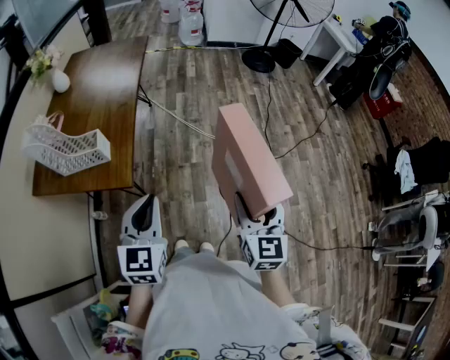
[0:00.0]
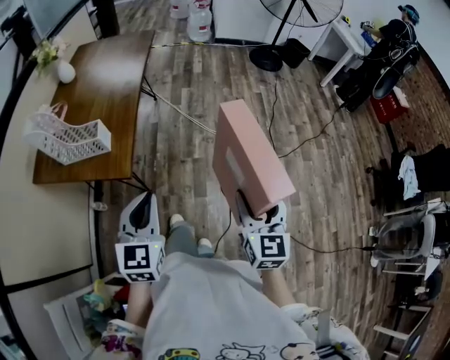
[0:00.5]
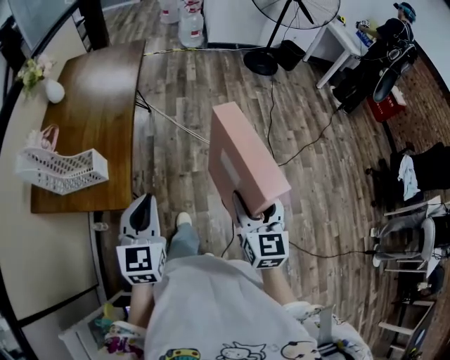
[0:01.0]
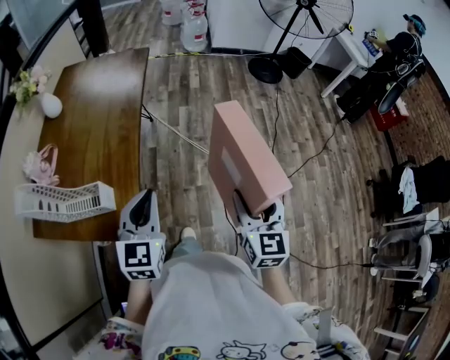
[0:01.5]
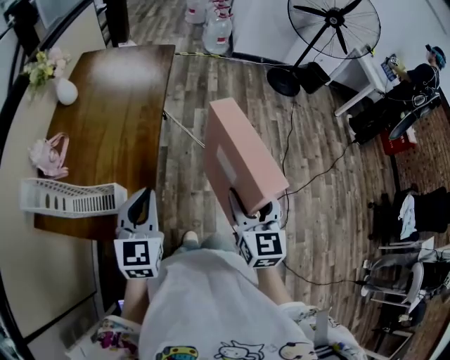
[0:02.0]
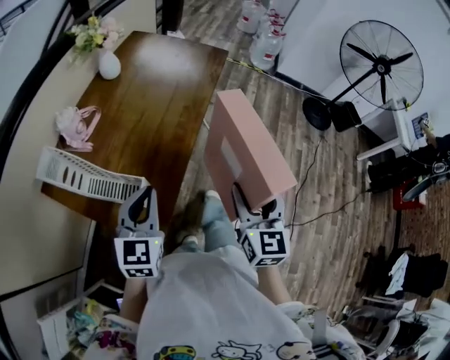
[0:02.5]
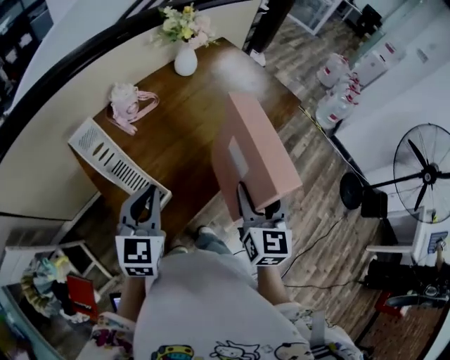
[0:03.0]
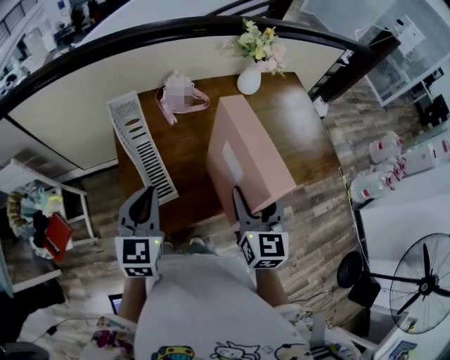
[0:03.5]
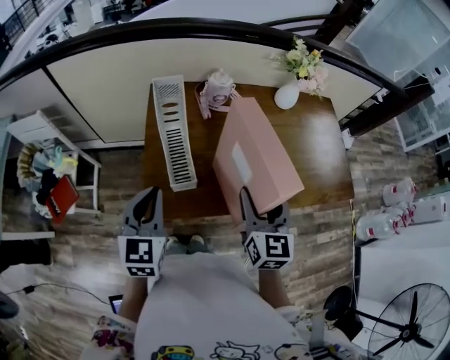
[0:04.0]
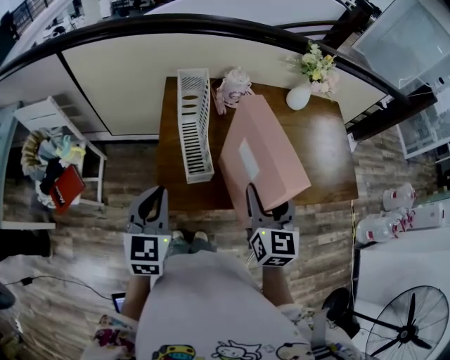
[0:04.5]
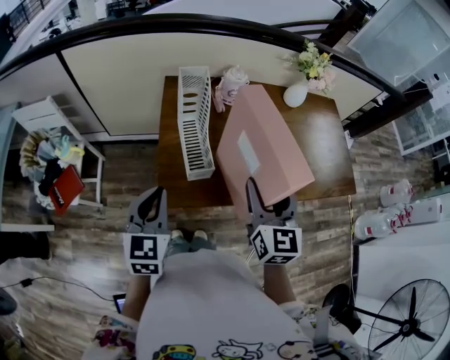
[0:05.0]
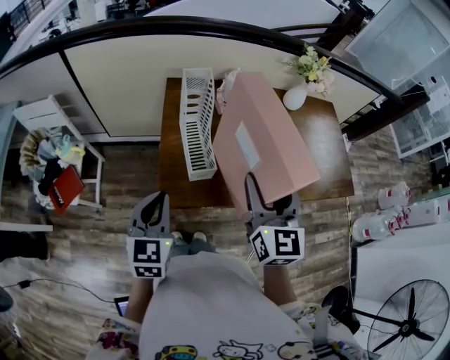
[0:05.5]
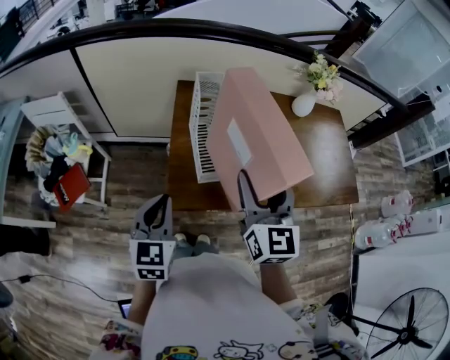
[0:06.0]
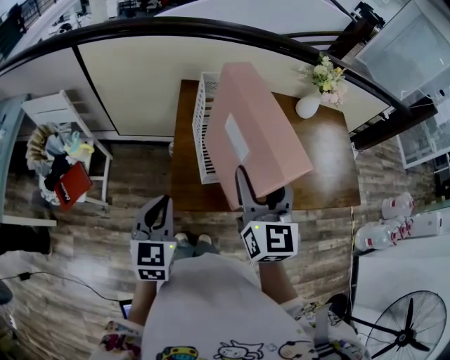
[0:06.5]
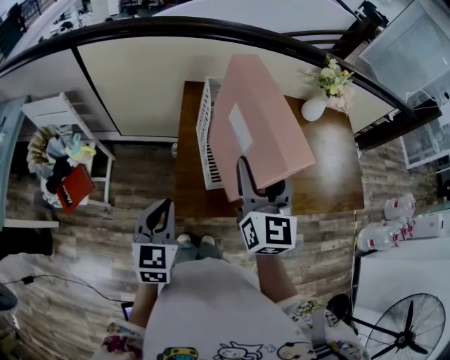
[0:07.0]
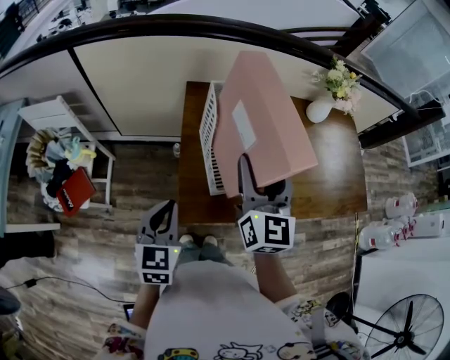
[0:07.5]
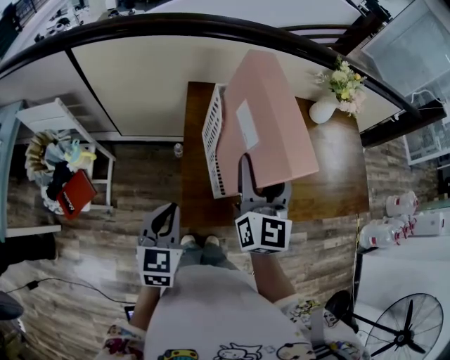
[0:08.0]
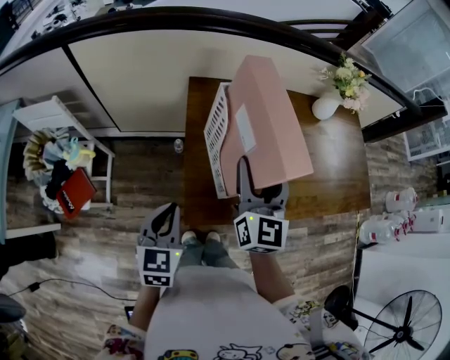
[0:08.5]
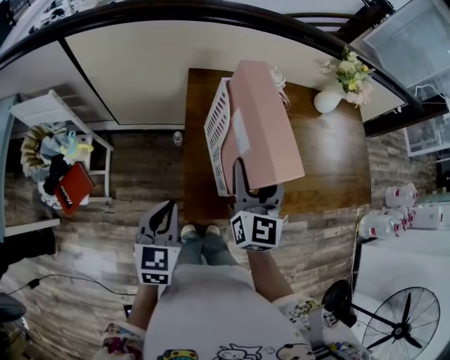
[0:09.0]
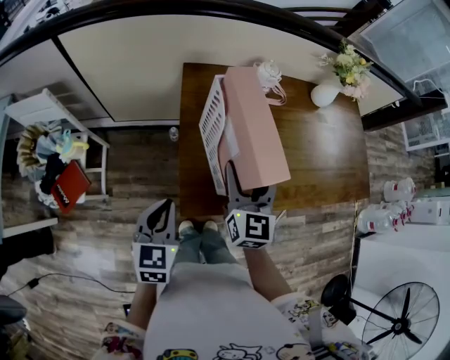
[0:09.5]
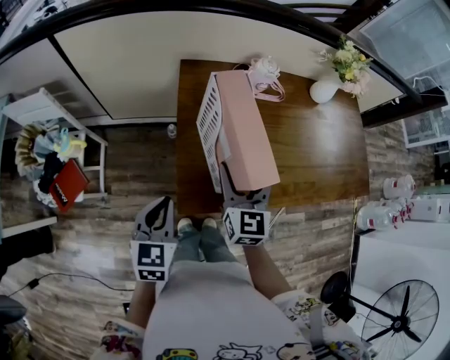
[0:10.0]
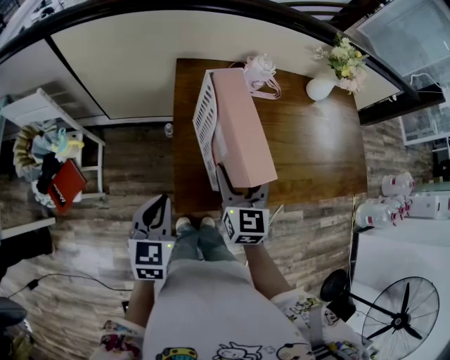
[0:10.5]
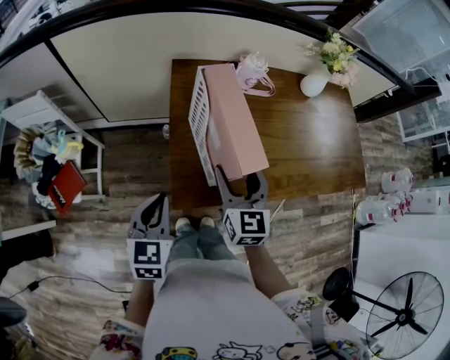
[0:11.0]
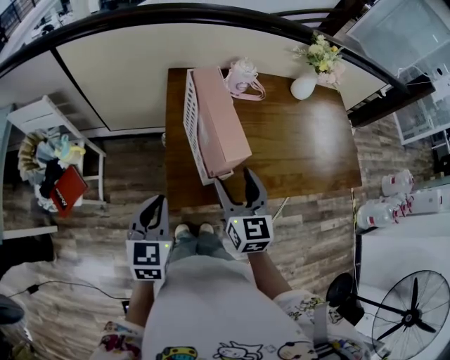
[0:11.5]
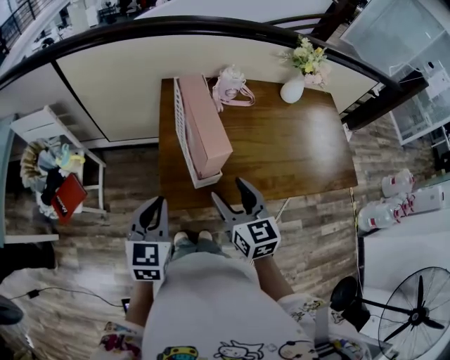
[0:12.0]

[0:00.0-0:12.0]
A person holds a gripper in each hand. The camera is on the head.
0.0 to 2.0 s: The grippers both shift forward and to the left by some 30 cm.
2.0 to 4.0 s: The right gripper changes place by some 35 cm, and turns by about 80 degrees; the left gripper moves about 15 cm, and rotates about 80 degrees.
4.0 to 6.0 s: The right gripper is displaced to the left and upward by roughly 15 cm, while the left gripper shifts approximately 10 cm to the left and backward.
6.0 to 8.0 s: The right gripper travels forward and to the left by about 10 cm. Meanwhile the left gripper travels forward by about 5 cm.
8.0 to 10.0 s: The right gripper is displaced downward by roughly 15 cm.
10.0 to 12.0 s: The left gripper travels upward and to the right by some 10 cm, while the right gripper is displaced backward and to the right by approximately 10 cm.

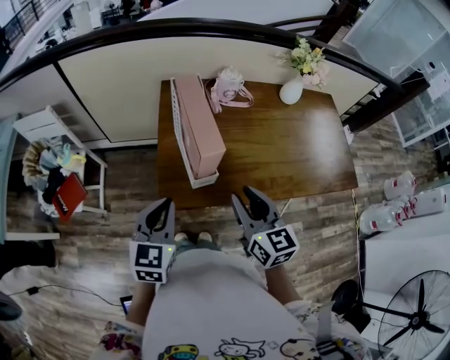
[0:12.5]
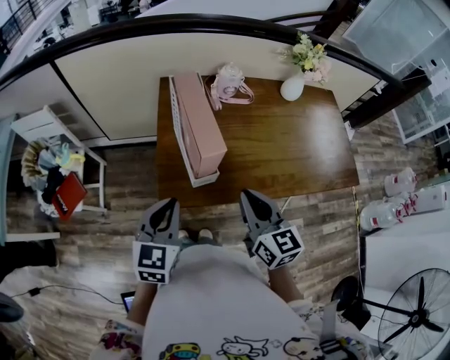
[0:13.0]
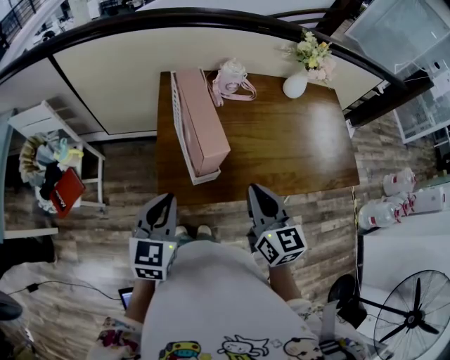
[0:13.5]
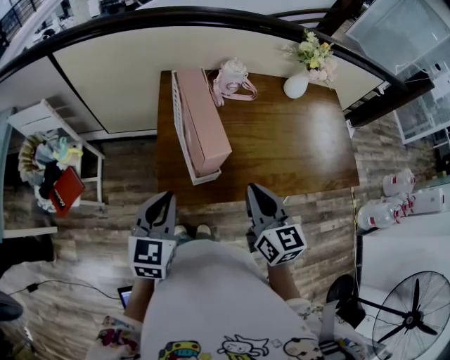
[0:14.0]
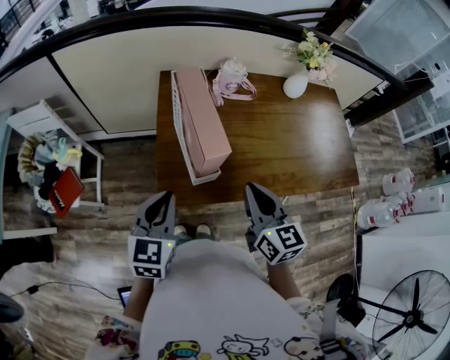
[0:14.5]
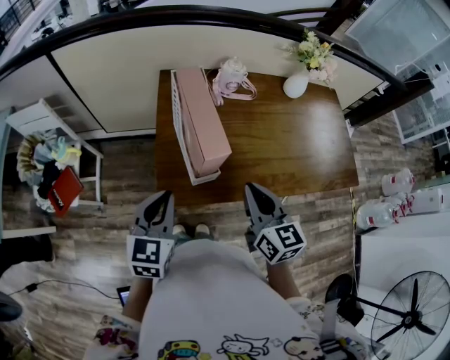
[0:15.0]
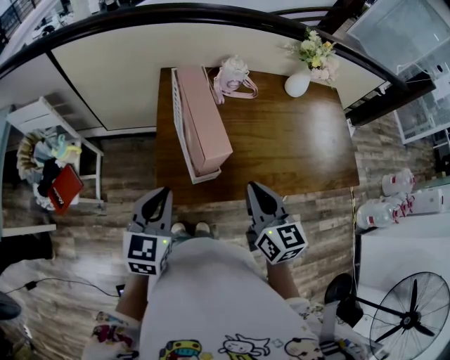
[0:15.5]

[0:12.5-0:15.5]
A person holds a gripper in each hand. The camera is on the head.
12.5 to 14.0 s: The right gripper closes up.
14.0 to 15.5 s: Neither gripper changes place.

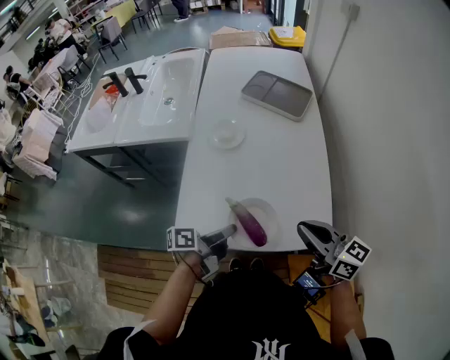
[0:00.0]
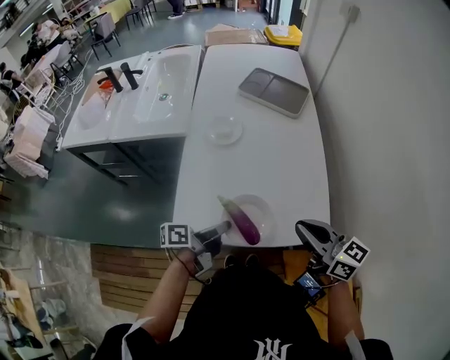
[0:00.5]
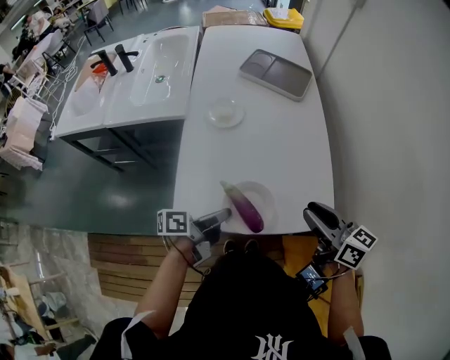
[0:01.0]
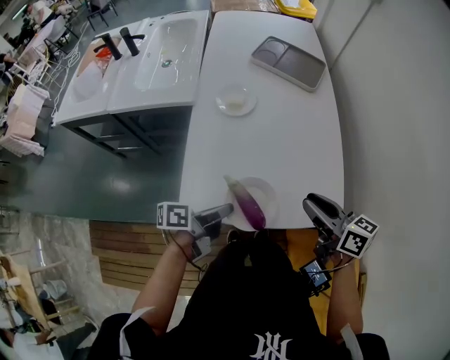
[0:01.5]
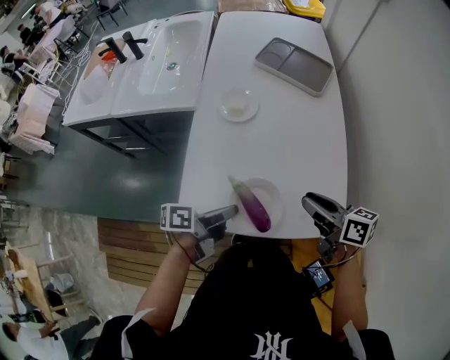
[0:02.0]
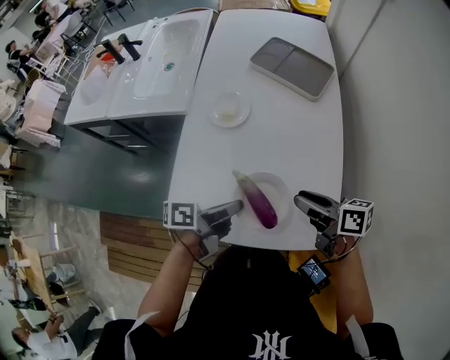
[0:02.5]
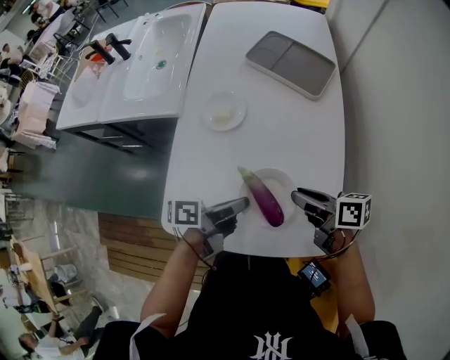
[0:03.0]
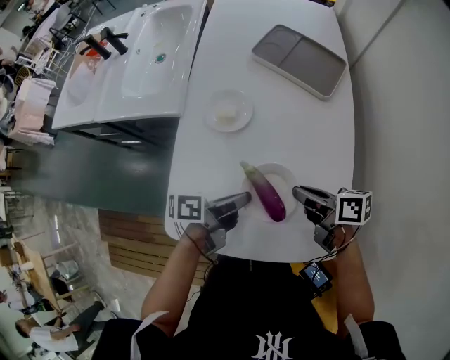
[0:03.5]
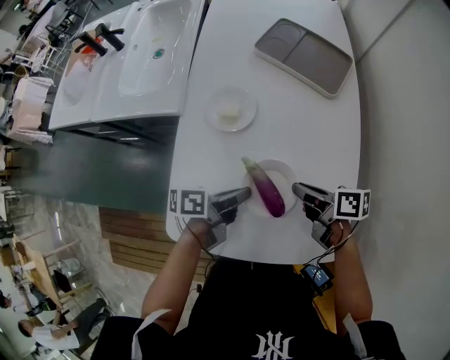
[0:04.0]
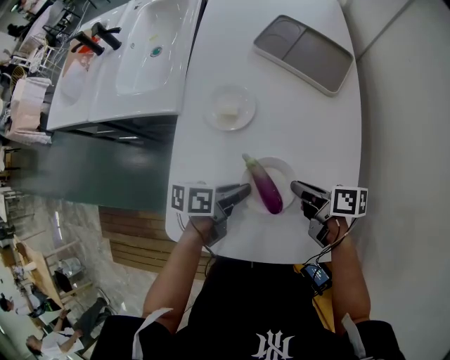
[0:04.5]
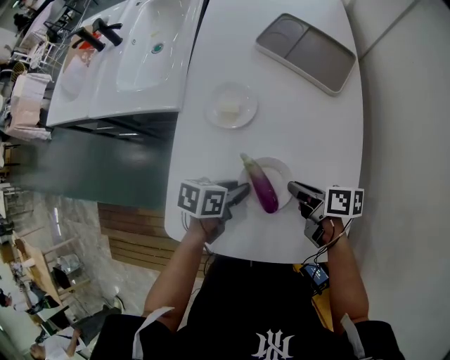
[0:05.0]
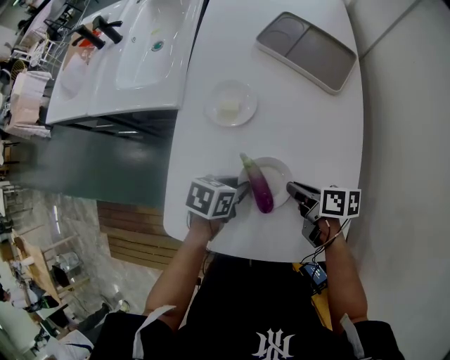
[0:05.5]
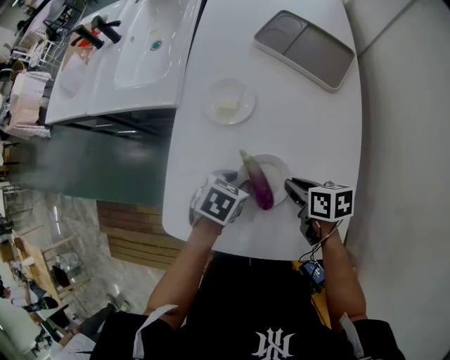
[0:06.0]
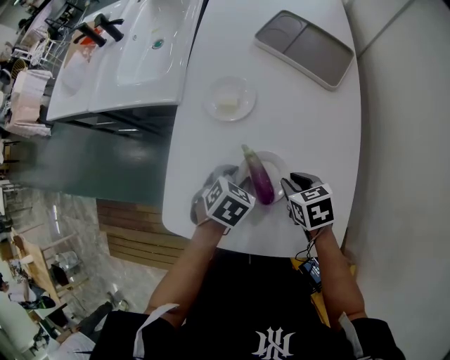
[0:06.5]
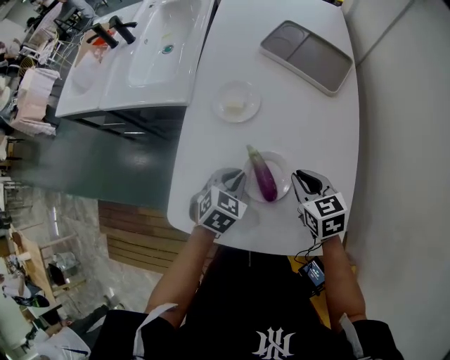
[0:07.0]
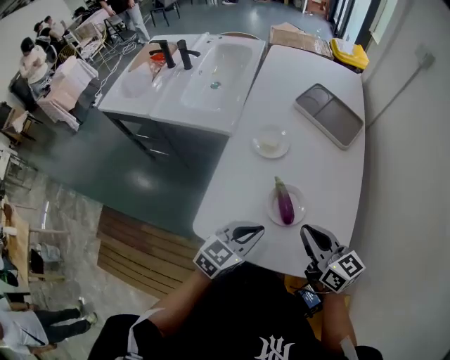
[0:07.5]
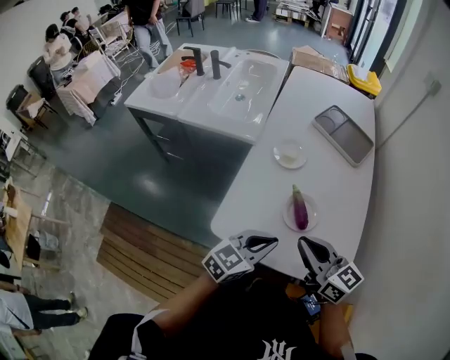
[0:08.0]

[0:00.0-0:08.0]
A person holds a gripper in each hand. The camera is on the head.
0.0 to 2.0 s: The right gripper is displaced downward and forward by about 10 cm, and changes its angle by about 30 degrees.
2.0 to 4.0 s: The left gripper goes approximately 15 cm forward and to the right, while the right gripper is displaced forward and downward by some 15 cm, and swivels about 20 degrees.
4.0 to 6.0 s: The left gripper angles its fingers downward, by roughly 40 degrees, and opens up. Meanwhile the right gripper turns by roughly 20 degrees.
6.0 to 8.0 s: The right gripper heads upward, backward and to the left, covering about 30 cm, and tips its fingers upward by some 40 degrees. Meanwhile the left gripper travels upward and backward by about 25 cm, points its fingers approximately 40 degrees further upward, and closes.

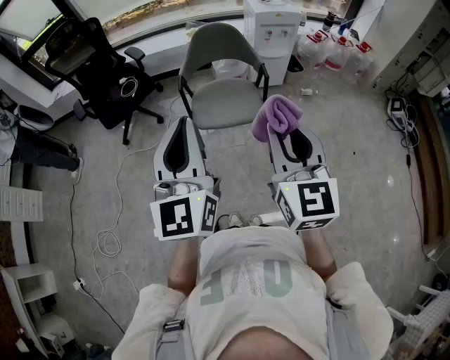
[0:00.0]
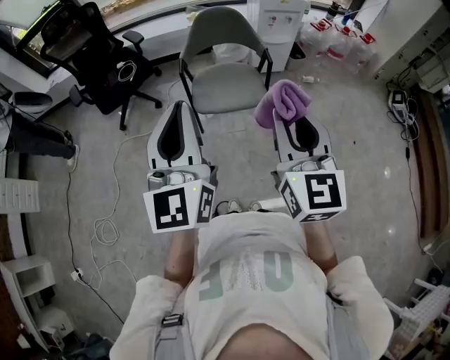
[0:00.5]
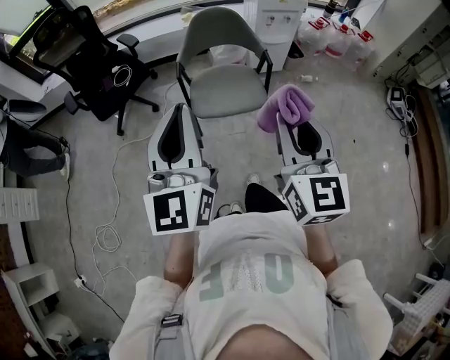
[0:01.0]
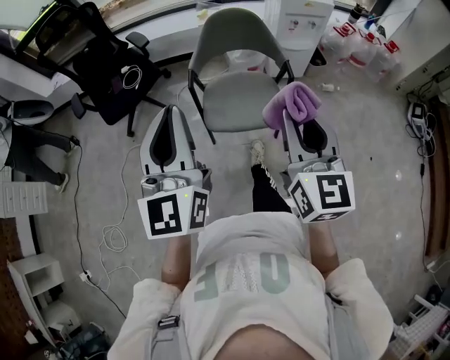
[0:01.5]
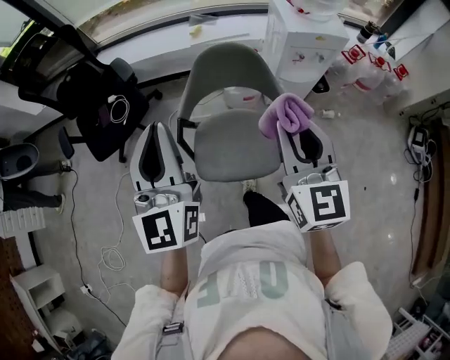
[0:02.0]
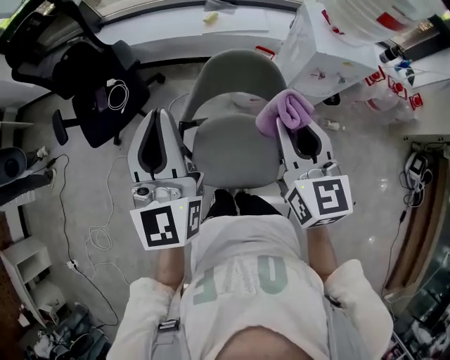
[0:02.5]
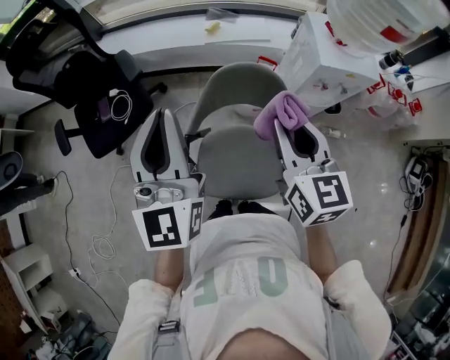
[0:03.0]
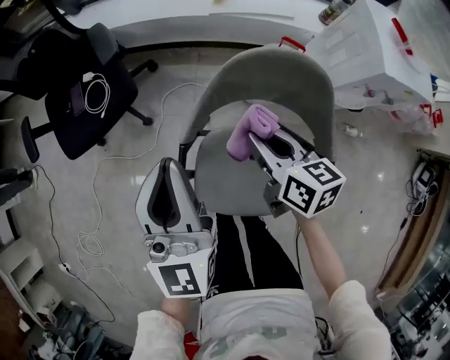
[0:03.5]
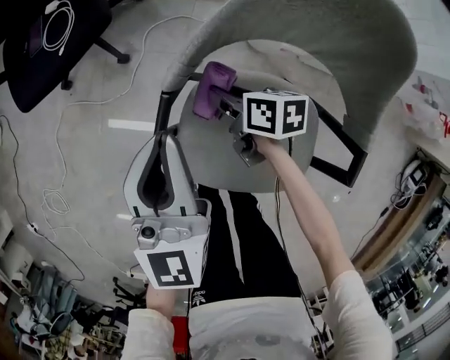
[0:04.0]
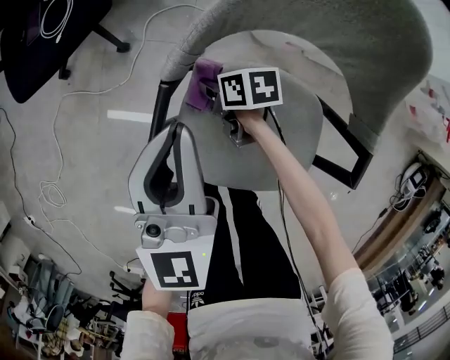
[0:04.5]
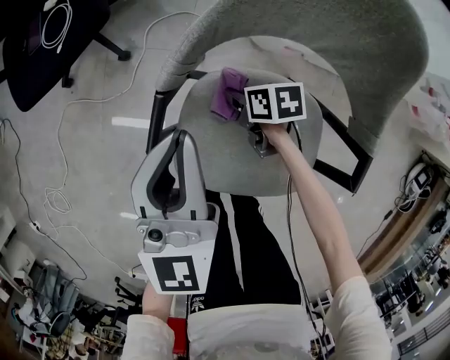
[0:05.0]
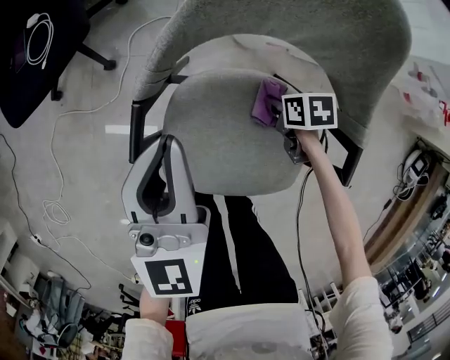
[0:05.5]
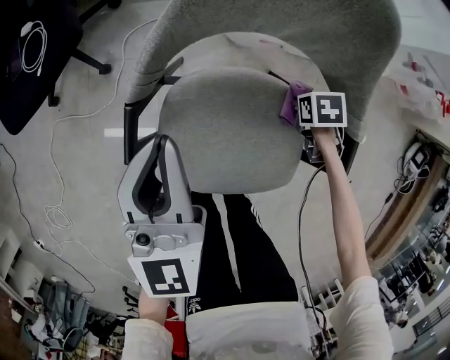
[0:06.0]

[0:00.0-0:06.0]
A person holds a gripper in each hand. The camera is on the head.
0.0 to 2.0 s: The two grippers travel together, forward, some 40 cm.
2.0 to 4.0 s: The right gripper shifts roughly 50 cm downward, and points its fingers some 40 degrees further downward; the left gripper travels downward by about 35 cm, and turns by approximately 20 degrees.
4.0 to 6.0 s: The left gripper moves approximately 5 cm. The right gripper changes place by about 30 cm, and tilts its fingers about 50 degrees downward.
